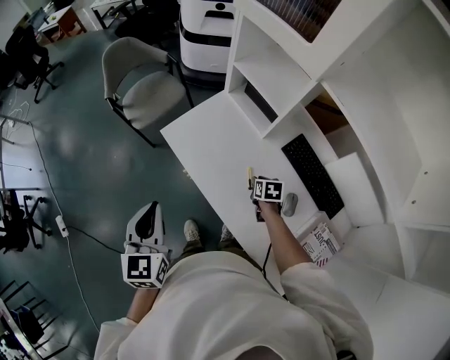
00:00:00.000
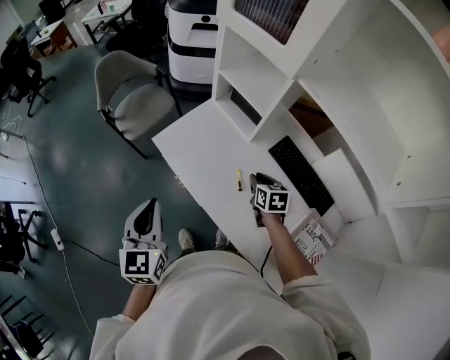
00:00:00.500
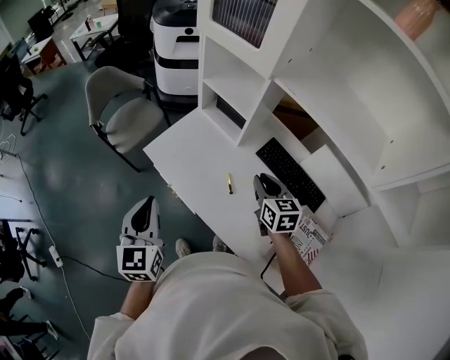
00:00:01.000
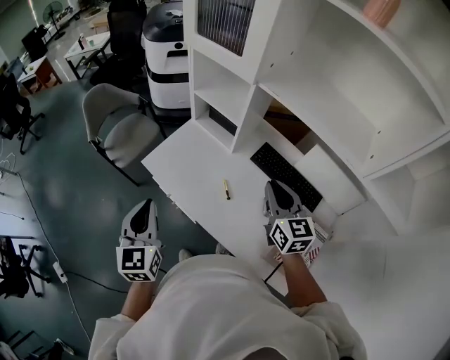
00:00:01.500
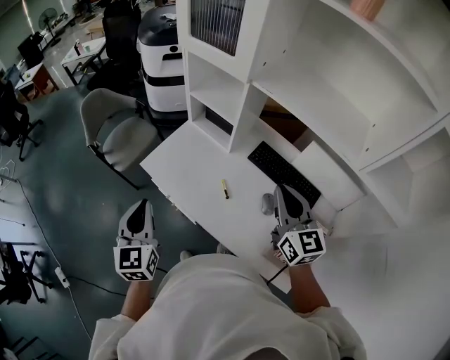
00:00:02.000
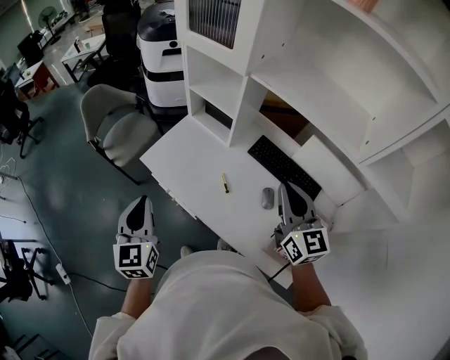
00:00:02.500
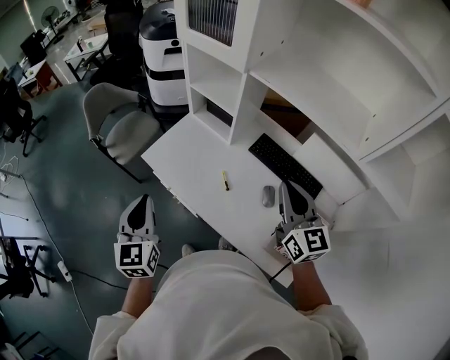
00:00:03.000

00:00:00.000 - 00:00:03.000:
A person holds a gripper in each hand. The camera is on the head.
00:00:00.000 - 00:00:01.500: The left gripper shifts roughly 5 cm upward. Meanwhile the right gripper heads upward, covering about 35 cm, and angles its fingers upward, by about 50 degrees.
00:00:01.500 - 00:00:03.000: The right gripper shifts some 10 cm backward and upward.

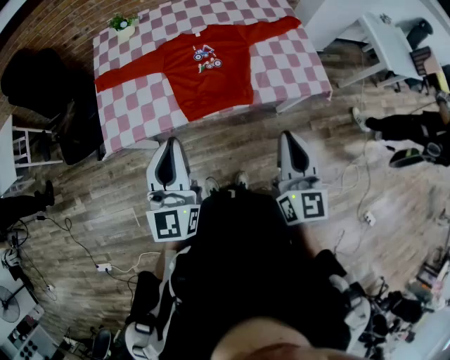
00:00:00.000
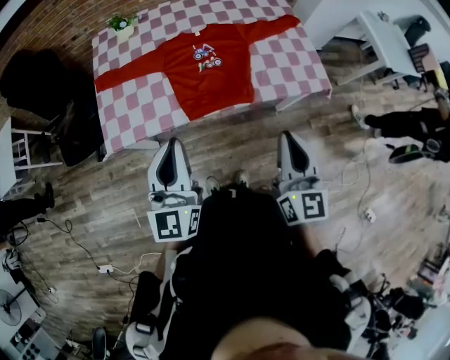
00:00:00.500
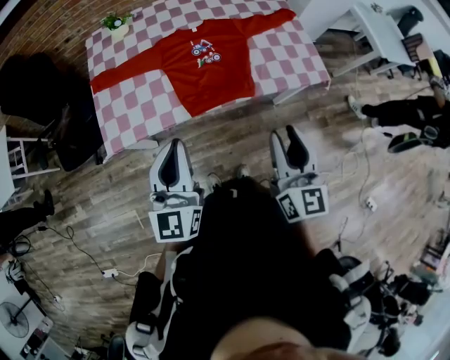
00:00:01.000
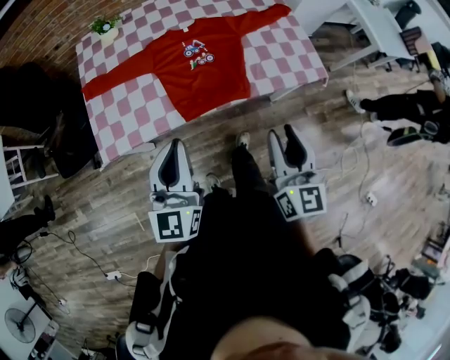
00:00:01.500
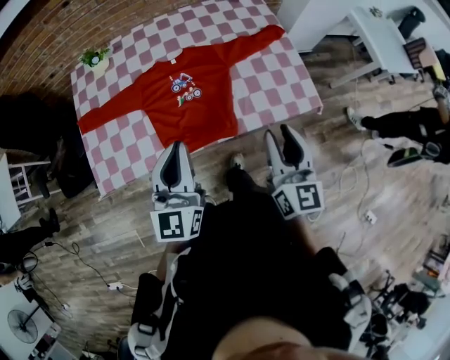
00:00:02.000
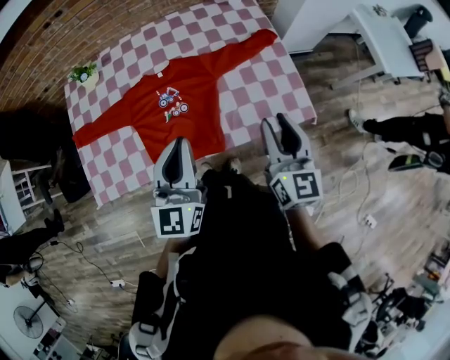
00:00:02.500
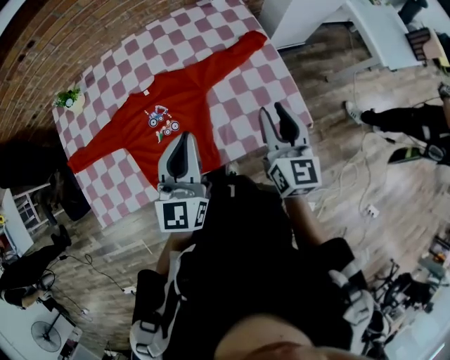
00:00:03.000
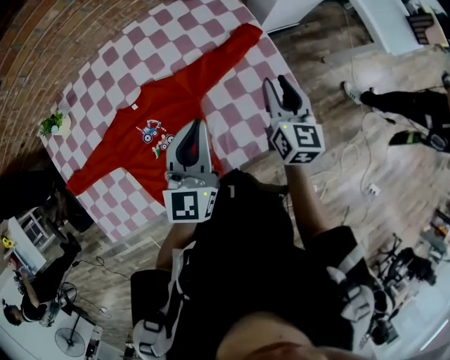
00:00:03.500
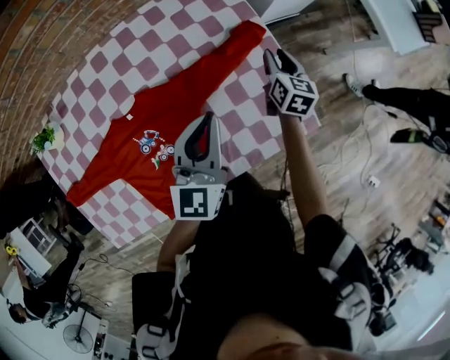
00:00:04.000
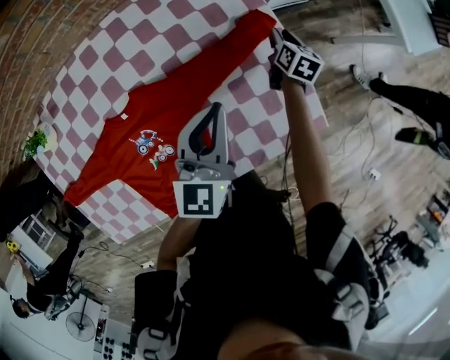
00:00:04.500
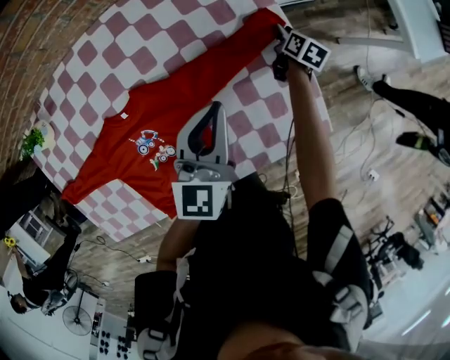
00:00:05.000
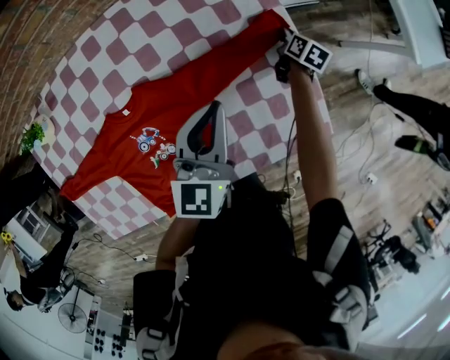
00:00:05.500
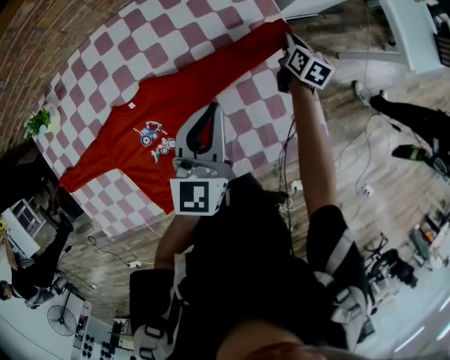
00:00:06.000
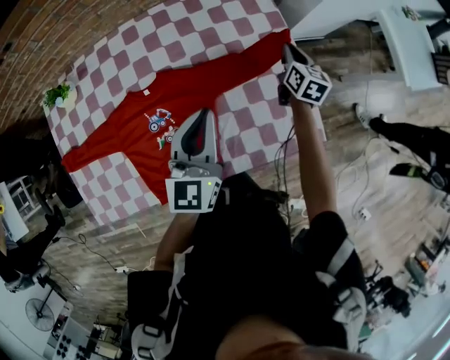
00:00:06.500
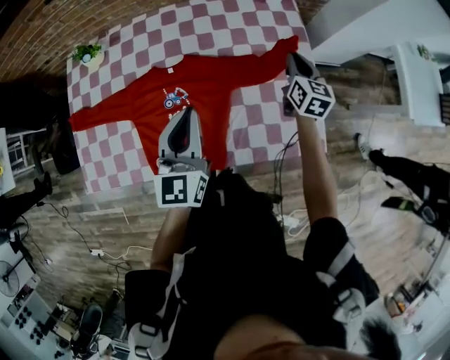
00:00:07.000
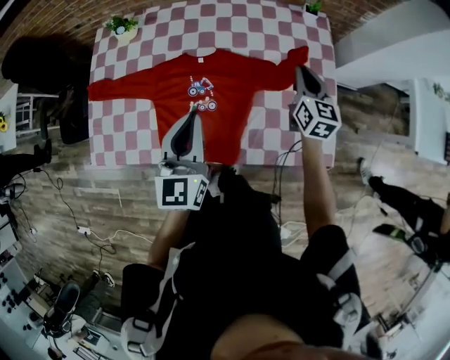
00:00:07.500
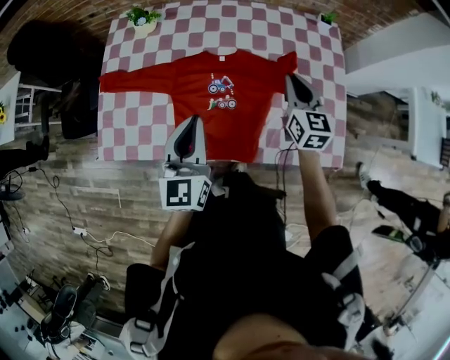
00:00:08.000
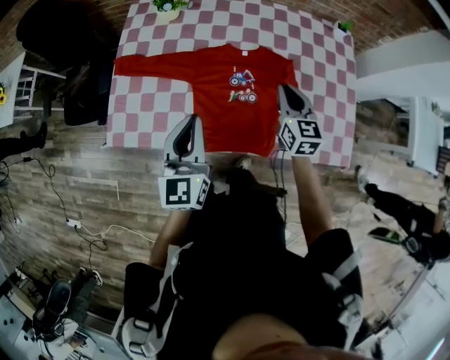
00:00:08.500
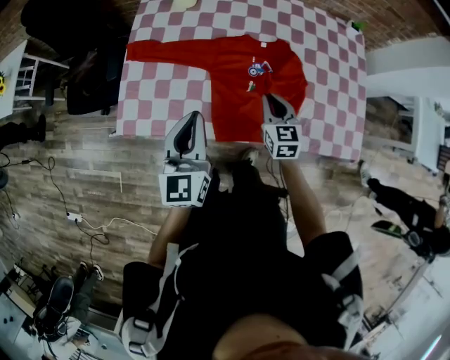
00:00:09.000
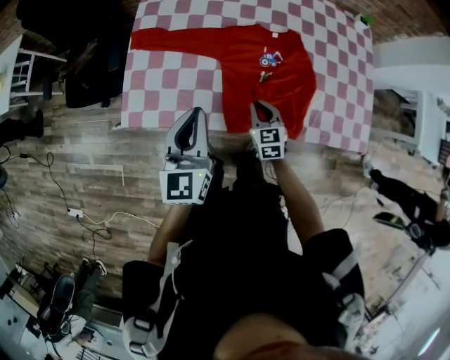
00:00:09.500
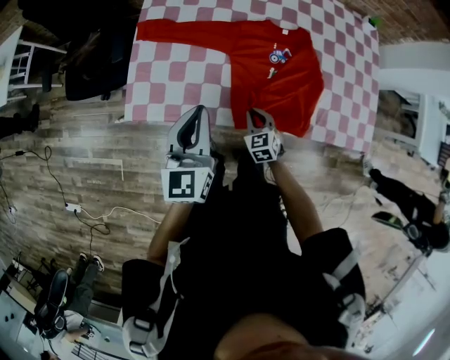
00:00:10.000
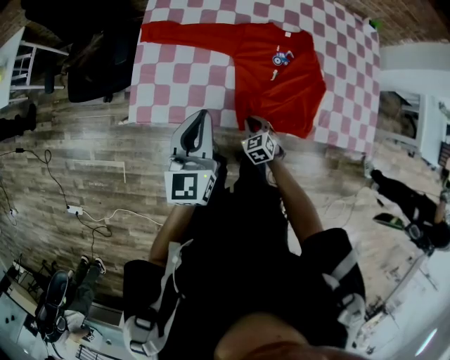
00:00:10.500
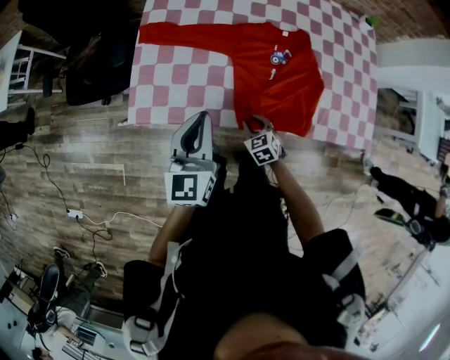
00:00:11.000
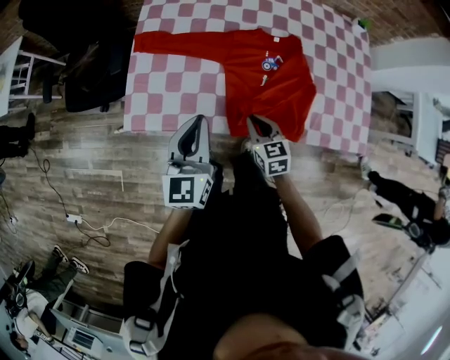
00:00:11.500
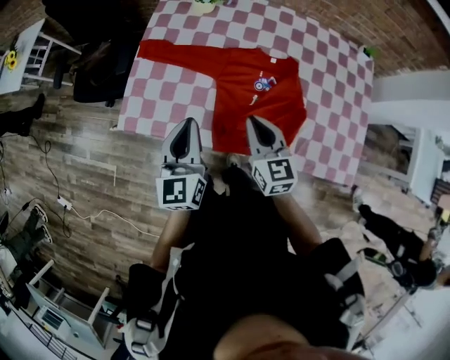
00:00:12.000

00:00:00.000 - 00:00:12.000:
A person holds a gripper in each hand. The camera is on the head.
00:00:00.000 - 00:00:02.000: The left gripper moves forward and to the right, approximately 20 cm. The right gripper goes some 15 cm forward, and opens its fingers.
00:00:02.000 - 00:00:04.000: Both grippers are carried forward, about 50 cm. The right gripper heads downward, covering roughly 25 cm, and rotates roughly 30 degrees. Meanwhile the left gripper turns by approximately 20 degrees.
00:00:04.000 - 00:00:06.000: The right gripper goes approximately 10 cm forward and downward, and closes.
00:00:06.000 - 00:00:08.000: The right gripper changes place by roughly 40 cm, and rotates roughly 50 degrees. Meanwhile the left gripper ends up some 35 cm from where it was, and swivels approximately 30 degrees.
00:00:08.000 - 00:00:10.000: The left gripper heads to the left, covering about 25 cm, while the right gripper goes about 50 cm to the left, downward and backward, and changes its angle by approximately 40 degrees.
00:00:10.000 - 00:00:12.000: The right gripper shifts roughly 25 cm upward, and changes its angle by approximately 30 degrees. The left gripper shifts about 5 cm to the right.

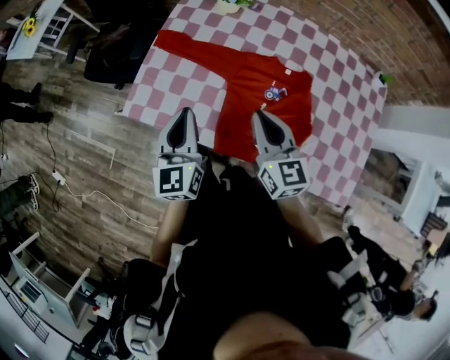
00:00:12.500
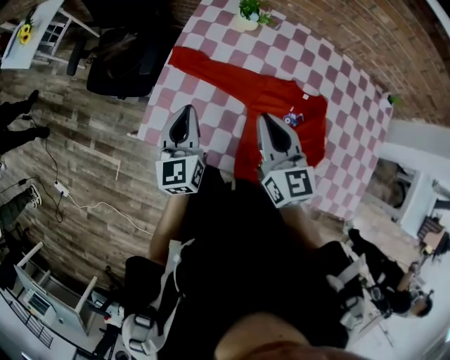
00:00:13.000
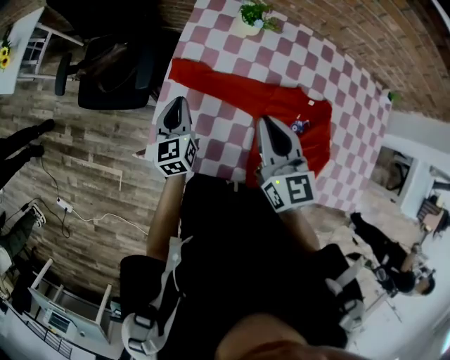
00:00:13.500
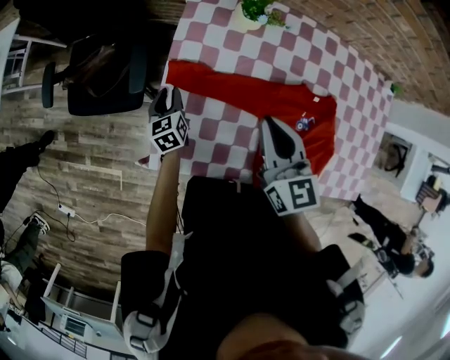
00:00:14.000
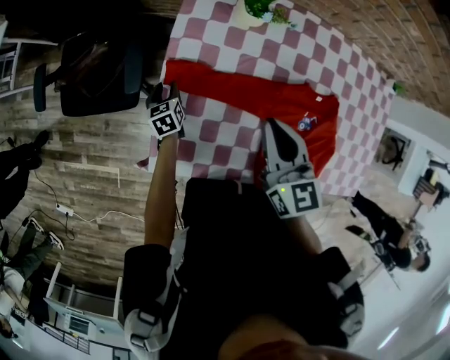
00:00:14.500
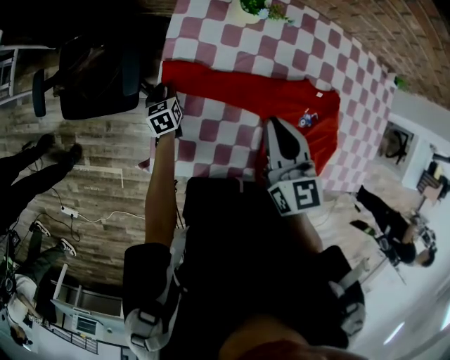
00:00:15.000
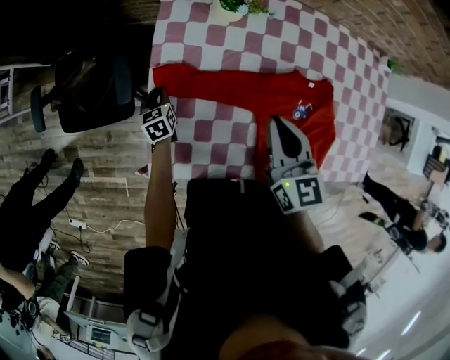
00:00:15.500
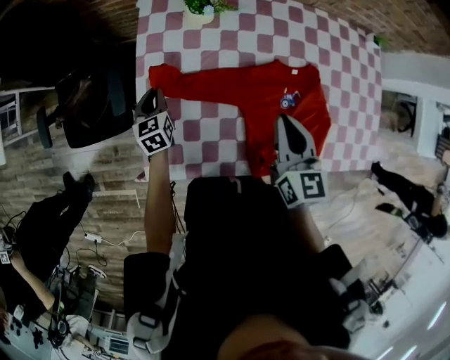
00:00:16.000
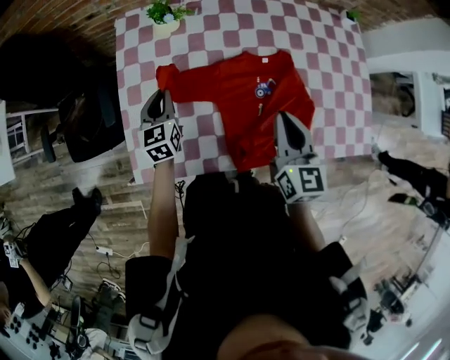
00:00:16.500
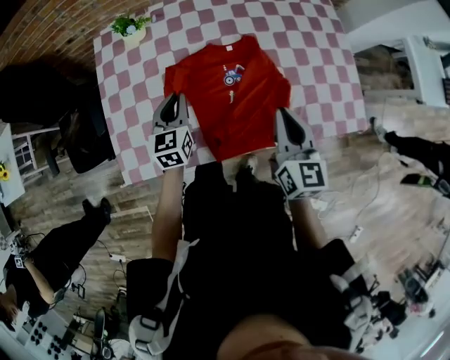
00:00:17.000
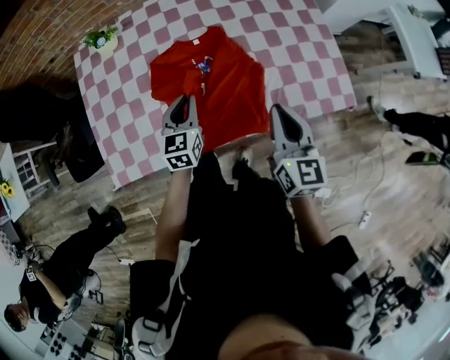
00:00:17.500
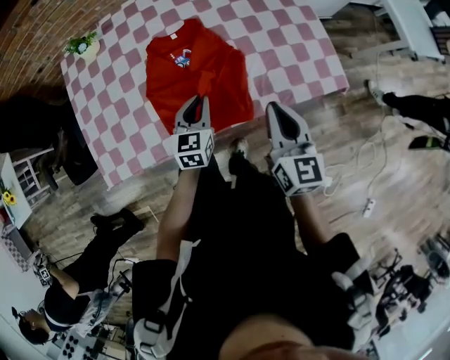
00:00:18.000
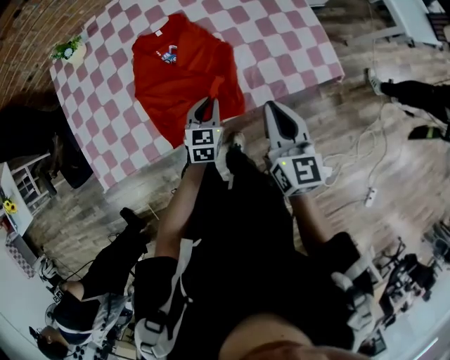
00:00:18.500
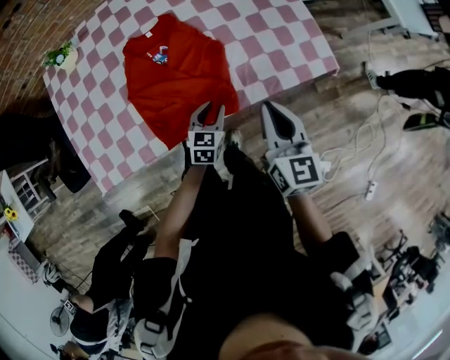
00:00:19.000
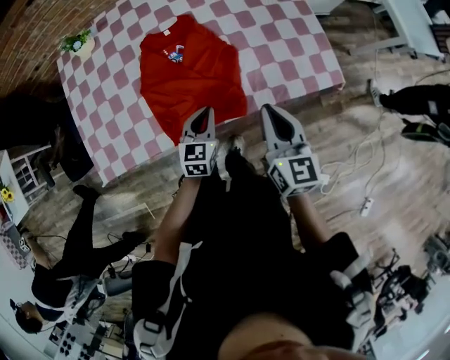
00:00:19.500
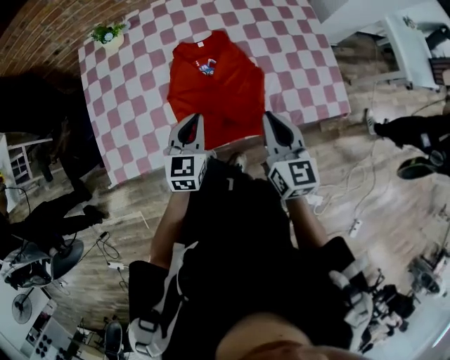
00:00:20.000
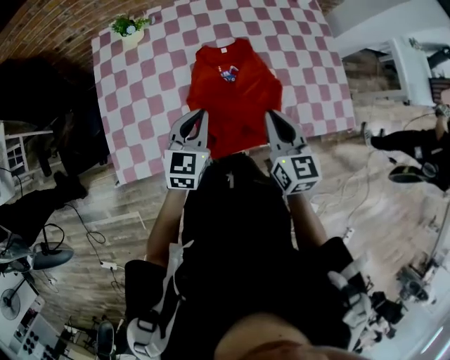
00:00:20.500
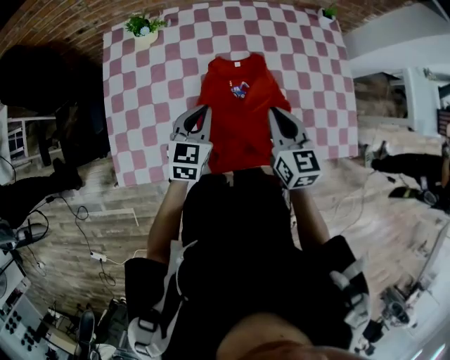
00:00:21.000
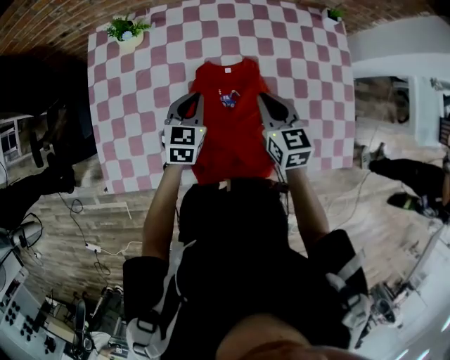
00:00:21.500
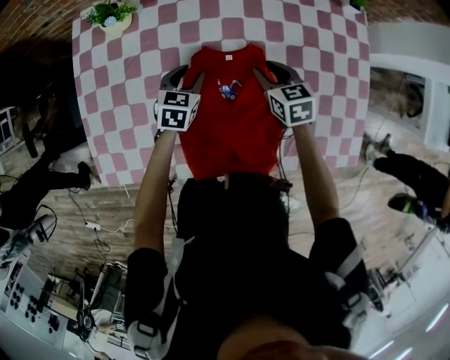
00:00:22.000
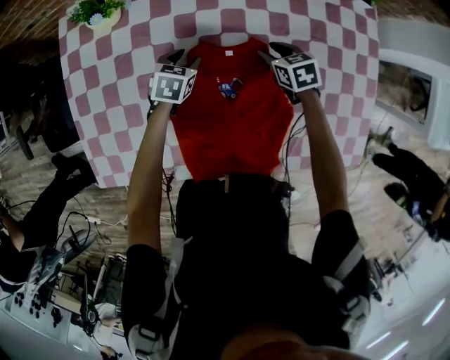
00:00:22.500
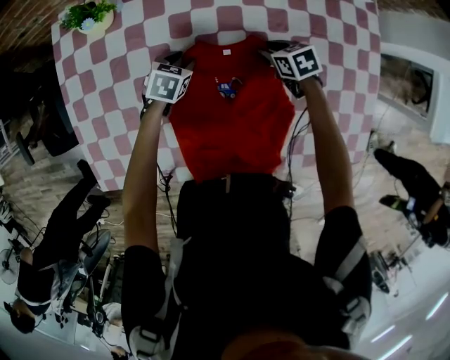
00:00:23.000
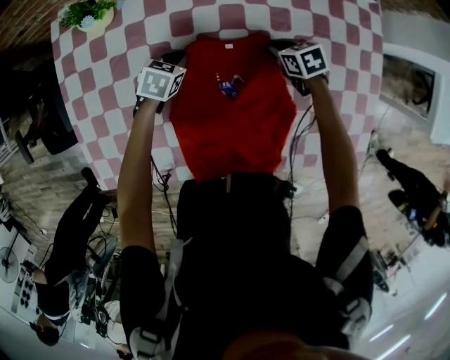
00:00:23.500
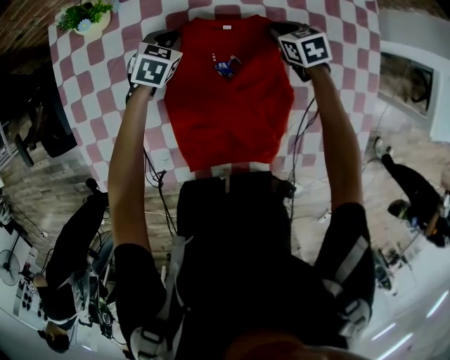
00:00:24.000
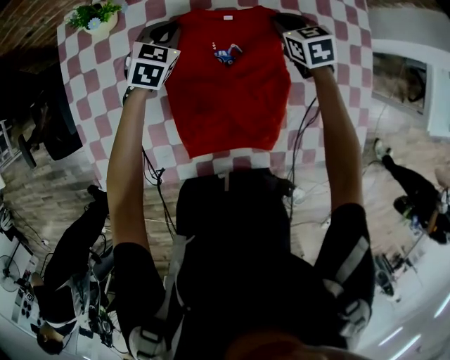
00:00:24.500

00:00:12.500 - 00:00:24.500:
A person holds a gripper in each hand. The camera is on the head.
00:00:12.500 - 00:00:14.500: The right gripper moves forward and to the left, about 30 cm, while the left gripper shifts approximately 50 cm forward, downward and to the left, tips its fingers downward by approximately 40 degrees, and opens.
00:00:14.500 - 00:00:16.500: The left gripper travels to the right and upward by roughly 30 cm, swivels about 30 degrees, and closes its fingers. The right gripper is displaced to the right and backward by about 30 cm, and turns by about 30 degrees.
00:00:16.500 - 00:00:18.500: The right gripper moves to the right and backward, roughly 35 cm; the left gripper is displaced to the right by some 50 cm, and rotates about 30 degrees.
00:00:18.500 - 00:00:20.500: The left gripper heads to the left and upward, covering approximately 30 cm. Meanwhile the right gripper shifts some 20 cm to the left.
00:00:20.500 - 00:00:22.500: The grippers both shift forward and downward by approximately 40 cm. The left gripper tilts its fingers approximately 30 degrees downward, and opens its fingers; the right gripper points its fingers approximately 40 degrees further downward, and opens.
00:00:22.500 - 00:00:24.500: The grippers both shift upward and forward by about 10 cm. The left gripper swivels approximately 20 degrees, and closes up. Meanwhile the right gripper closes up.
